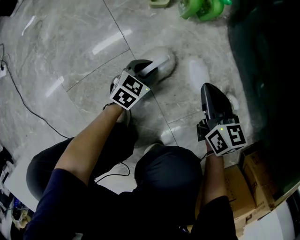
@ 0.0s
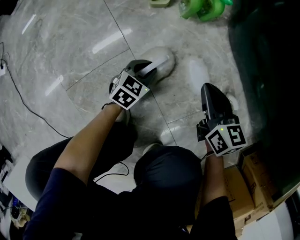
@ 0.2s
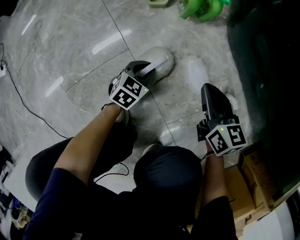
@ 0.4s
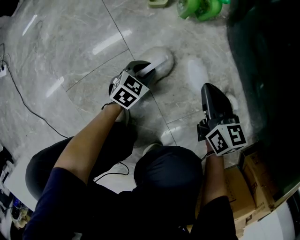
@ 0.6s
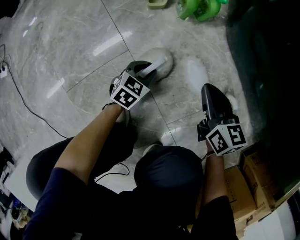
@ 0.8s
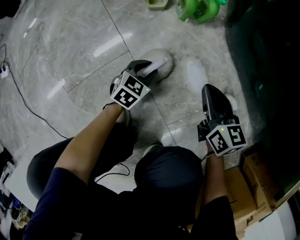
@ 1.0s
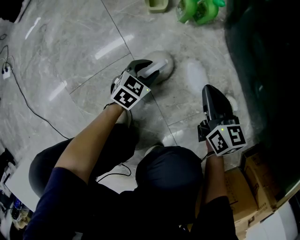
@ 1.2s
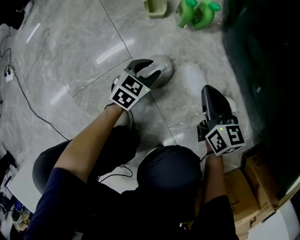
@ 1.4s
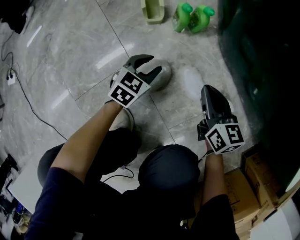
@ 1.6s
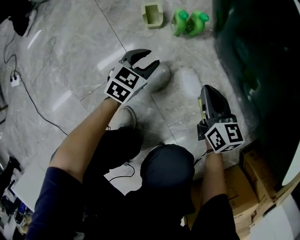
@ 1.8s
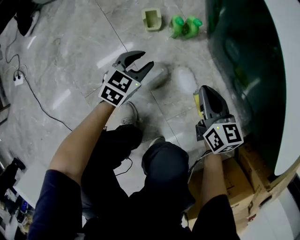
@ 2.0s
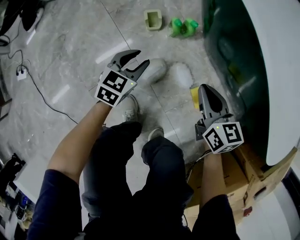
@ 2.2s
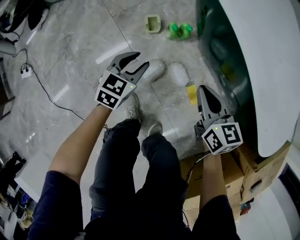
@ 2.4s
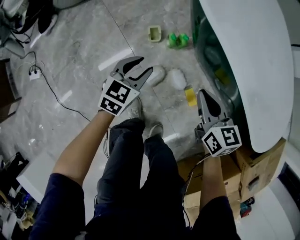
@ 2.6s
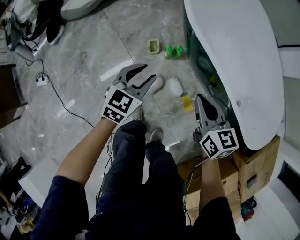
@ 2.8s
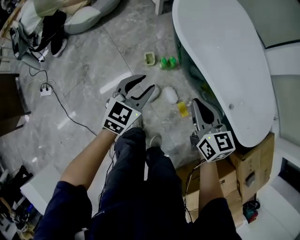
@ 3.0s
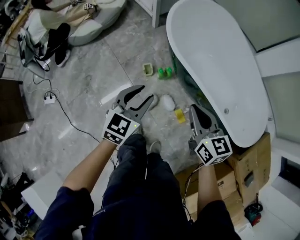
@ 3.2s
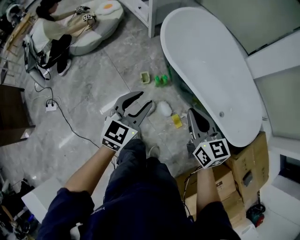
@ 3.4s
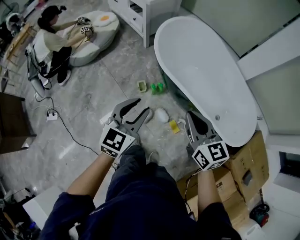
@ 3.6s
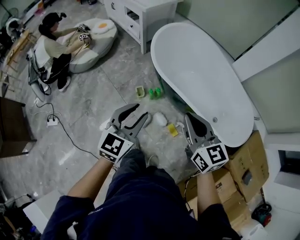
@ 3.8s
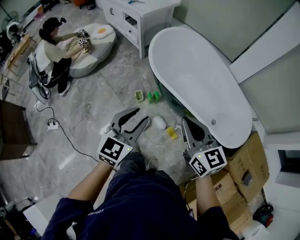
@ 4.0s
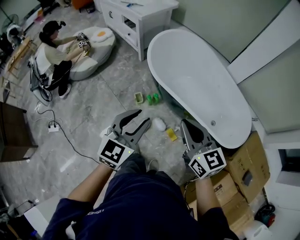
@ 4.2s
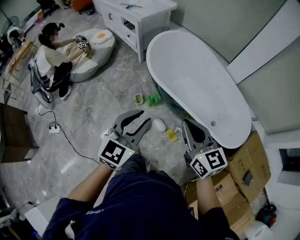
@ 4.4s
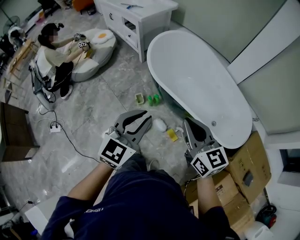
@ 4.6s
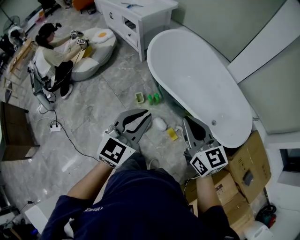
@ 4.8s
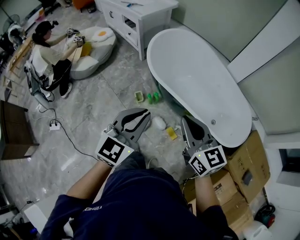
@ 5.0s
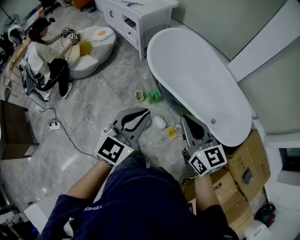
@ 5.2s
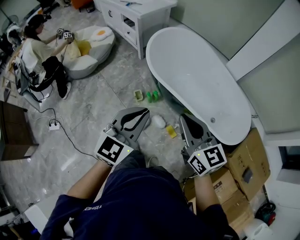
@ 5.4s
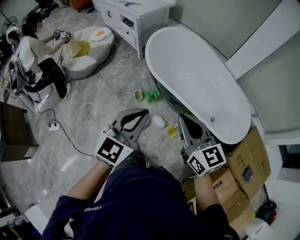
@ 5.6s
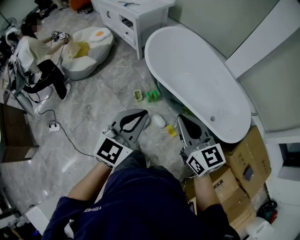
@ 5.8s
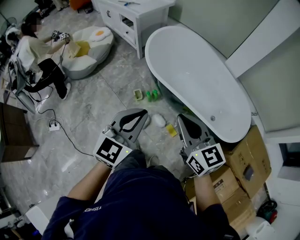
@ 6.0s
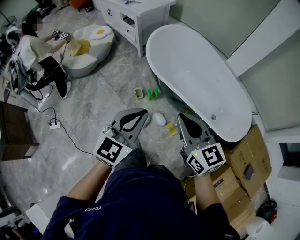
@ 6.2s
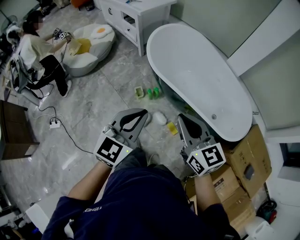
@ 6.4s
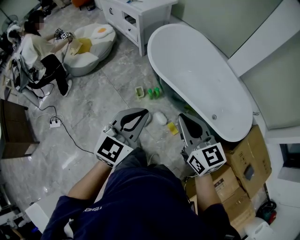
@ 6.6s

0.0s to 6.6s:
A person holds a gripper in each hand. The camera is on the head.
0.0s to 1.6s: The left gripper travels upward and forward by approximately 10 cm.
1.6s to 3.2s: The two grippers go some 70 cm upward.
3.2s to 5.0s: The two grippers go roughly 20 cm upward and backward. The left gripper closes up.
5.0s to 6.6s: The grippers make only small movements.

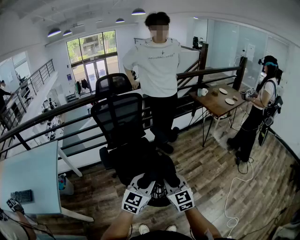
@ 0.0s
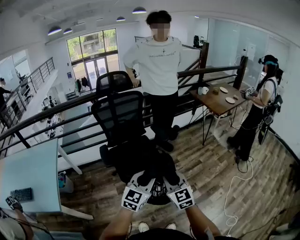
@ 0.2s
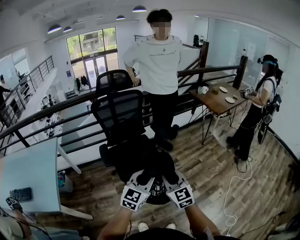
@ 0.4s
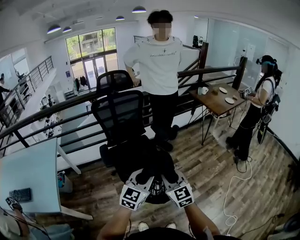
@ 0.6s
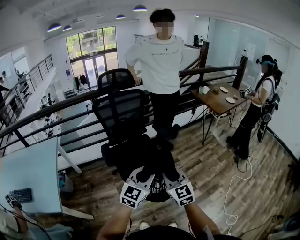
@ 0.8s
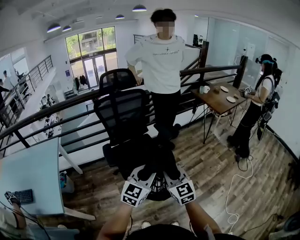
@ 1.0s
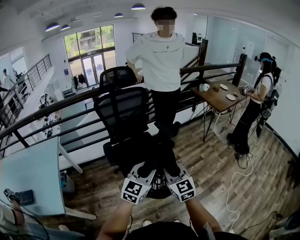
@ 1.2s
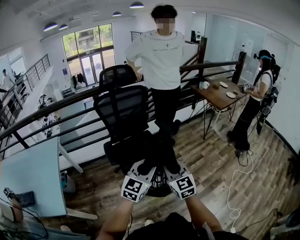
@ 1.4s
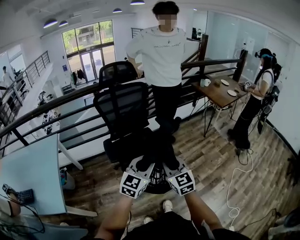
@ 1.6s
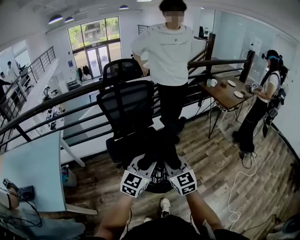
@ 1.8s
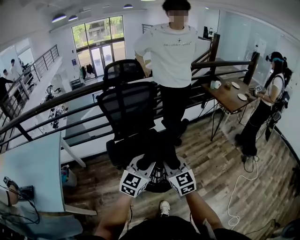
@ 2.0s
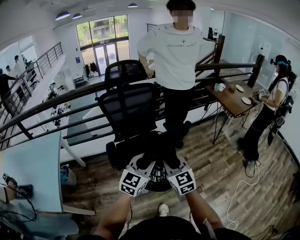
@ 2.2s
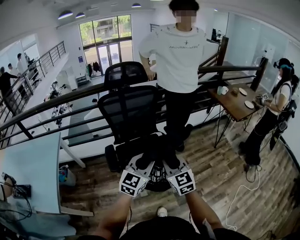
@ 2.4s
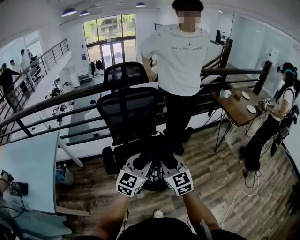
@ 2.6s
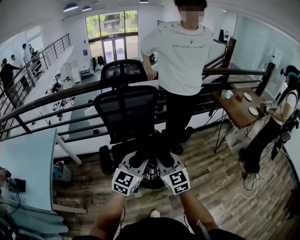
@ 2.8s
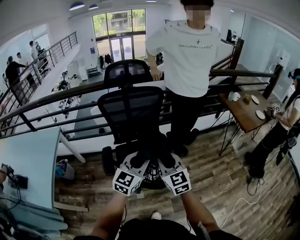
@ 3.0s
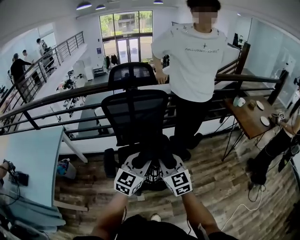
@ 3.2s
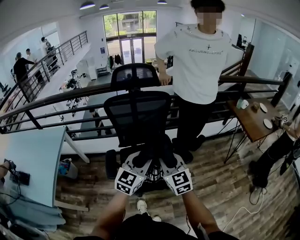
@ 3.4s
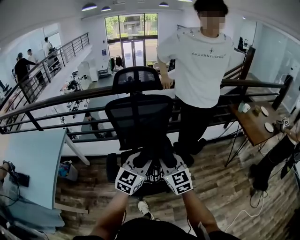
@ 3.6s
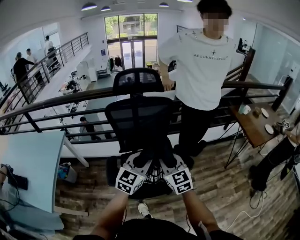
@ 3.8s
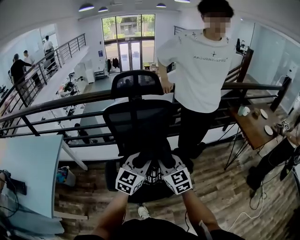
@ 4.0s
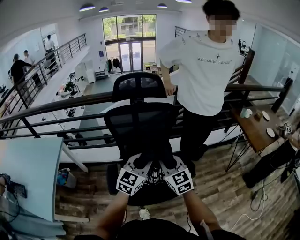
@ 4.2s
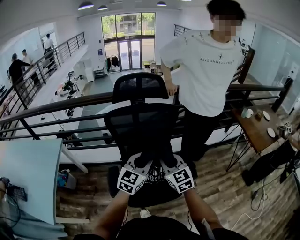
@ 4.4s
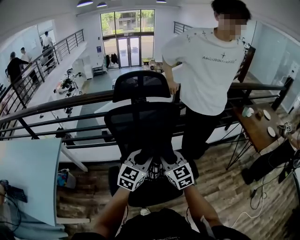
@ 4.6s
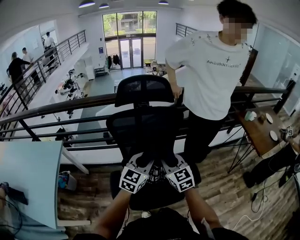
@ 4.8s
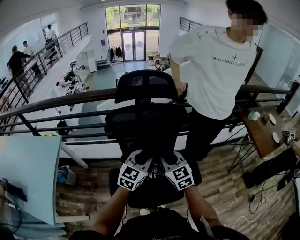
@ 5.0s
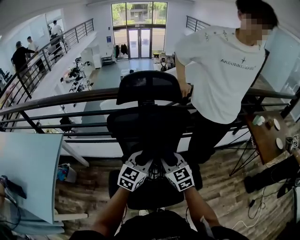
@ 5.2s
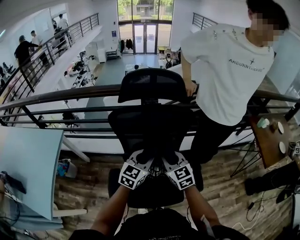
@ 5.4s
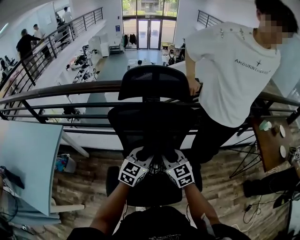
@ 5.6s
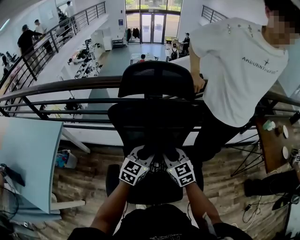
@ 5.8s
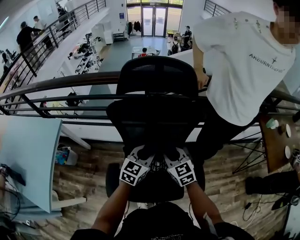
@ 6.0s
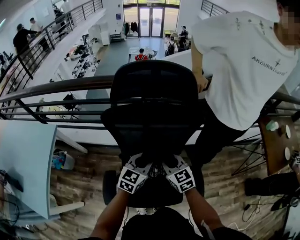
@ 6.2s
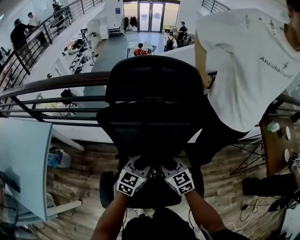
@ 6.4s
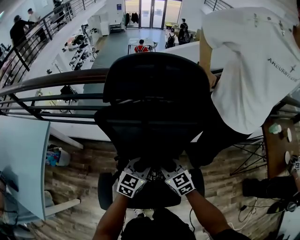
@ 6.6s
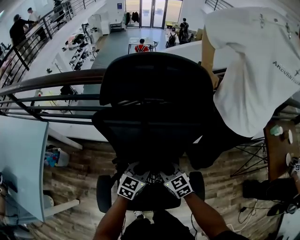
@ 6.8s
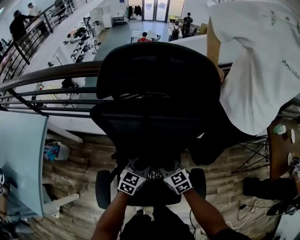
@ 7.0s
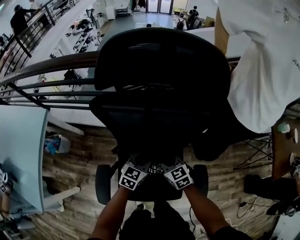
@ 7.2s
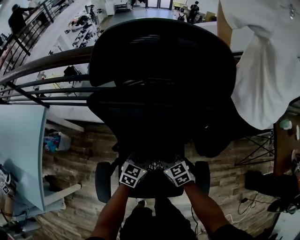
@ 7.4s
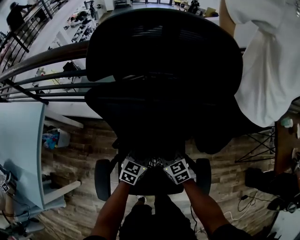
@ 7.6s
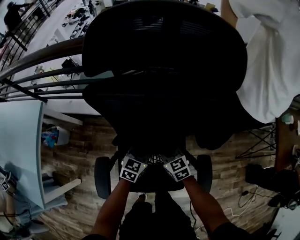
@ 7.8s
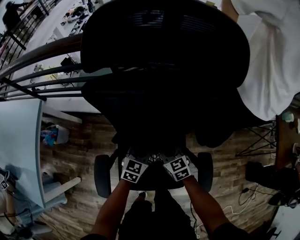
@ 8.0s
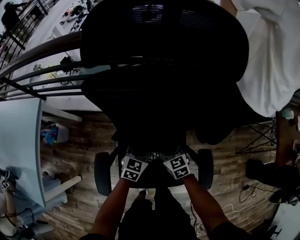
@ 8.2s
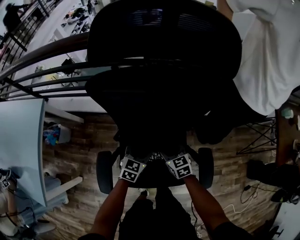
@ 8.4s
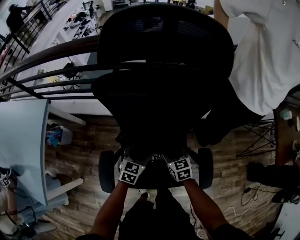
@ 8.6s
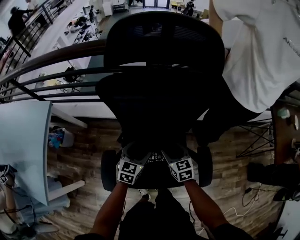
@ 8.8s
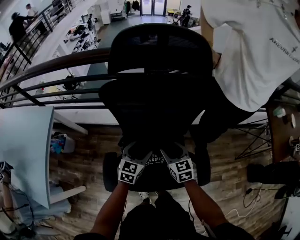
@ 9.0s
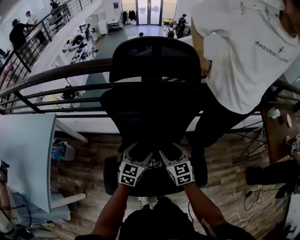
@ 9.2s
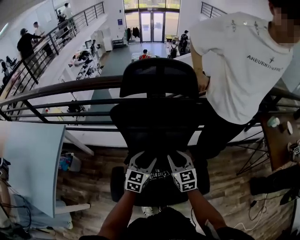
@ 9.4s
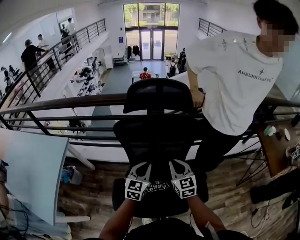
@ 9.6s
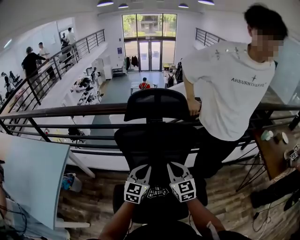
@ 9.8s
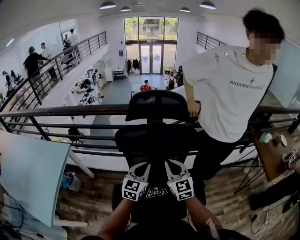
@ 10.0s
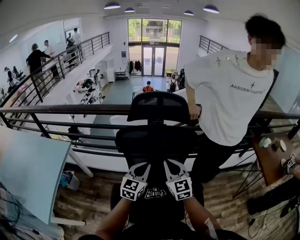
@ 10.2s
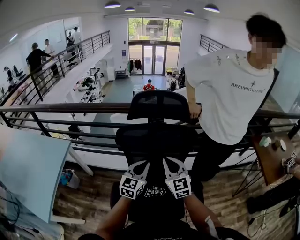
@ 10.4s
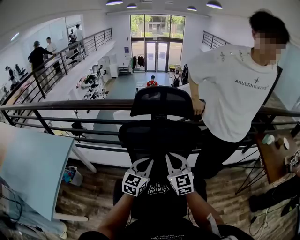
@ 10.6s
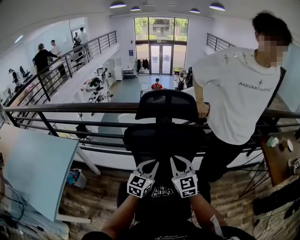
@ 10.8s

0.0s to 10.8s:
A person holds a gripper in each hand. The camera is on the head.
0.0s to 1.6s: Both grippers move to the left, about 10 cm.
1.6s to 3.0s: Both grippers travel together forward, some 25 cm.
3.0s to 4.6s: Both grippers move forward, about 20 cm.
4.6s to 6.2s: Both grippers travel together forward and downward, about 20 cm.
6.2s to 7.8s: Both grippers move downward, some 20 cm.
7.8s to 9.2s: The right gripper heads upward, covering about 15 cm, and opens up; the left gripper travels upward and backward by roughly 15 cm, and opens its fingers.
9.2s to 10.8s: The grippers both shift upward by roughly 20 cm. The right gripper swivels about 20 degrees, and closes up. The left gripper closes.

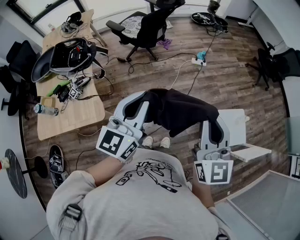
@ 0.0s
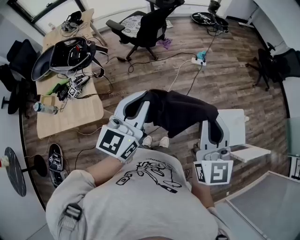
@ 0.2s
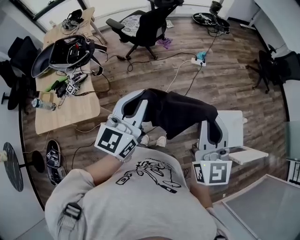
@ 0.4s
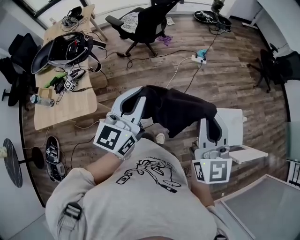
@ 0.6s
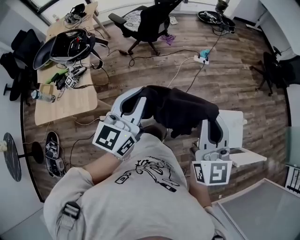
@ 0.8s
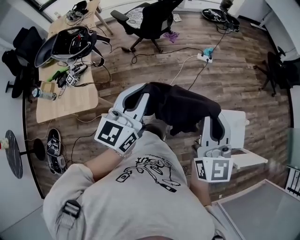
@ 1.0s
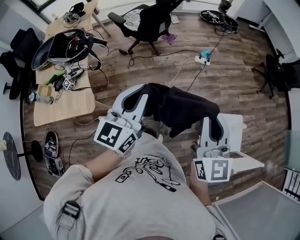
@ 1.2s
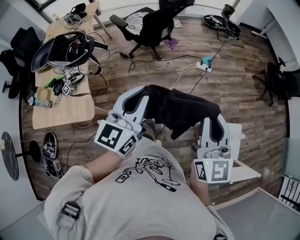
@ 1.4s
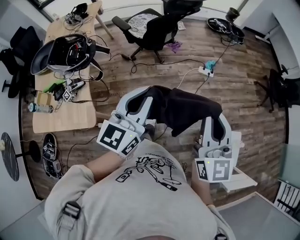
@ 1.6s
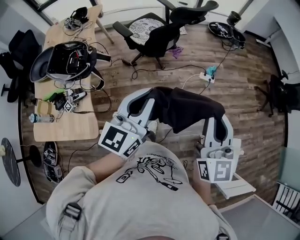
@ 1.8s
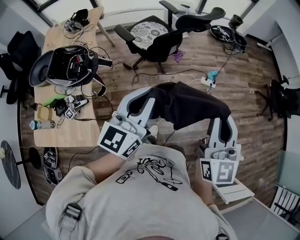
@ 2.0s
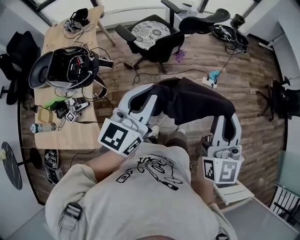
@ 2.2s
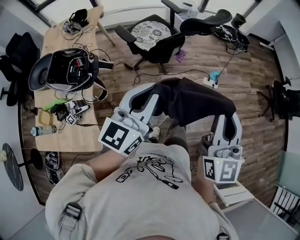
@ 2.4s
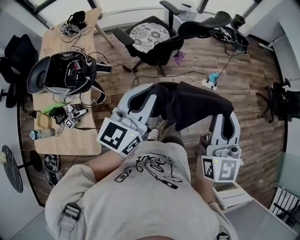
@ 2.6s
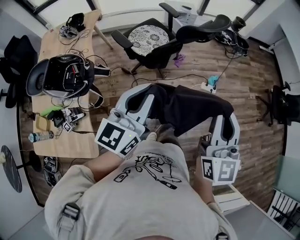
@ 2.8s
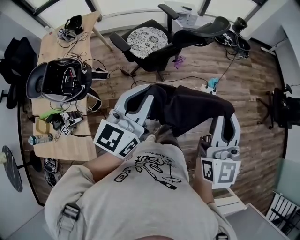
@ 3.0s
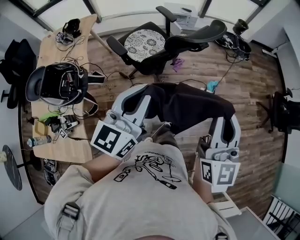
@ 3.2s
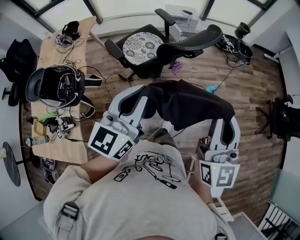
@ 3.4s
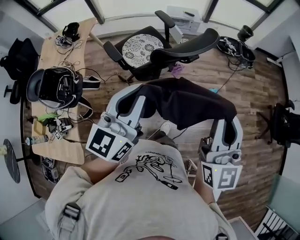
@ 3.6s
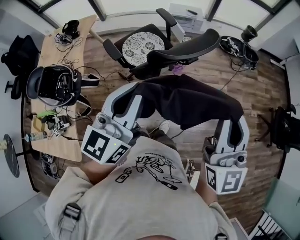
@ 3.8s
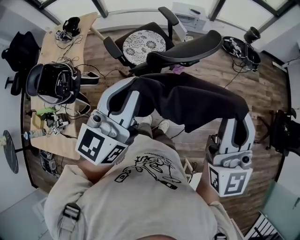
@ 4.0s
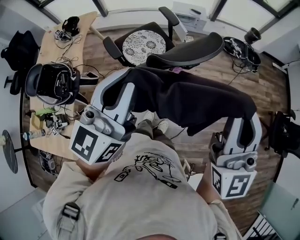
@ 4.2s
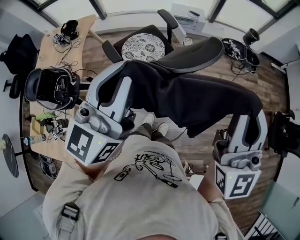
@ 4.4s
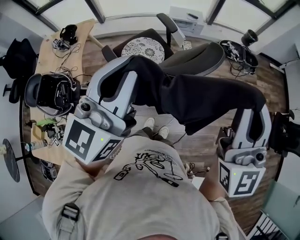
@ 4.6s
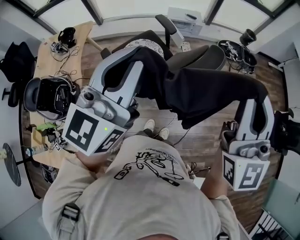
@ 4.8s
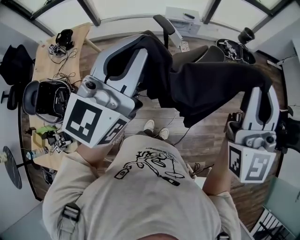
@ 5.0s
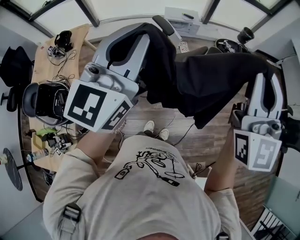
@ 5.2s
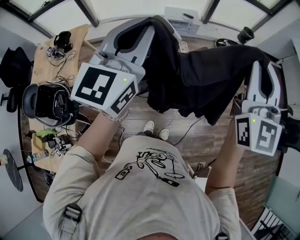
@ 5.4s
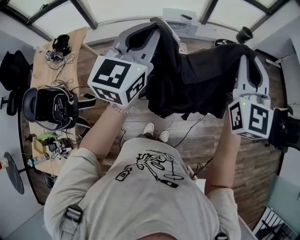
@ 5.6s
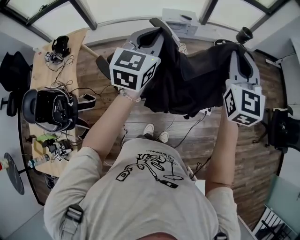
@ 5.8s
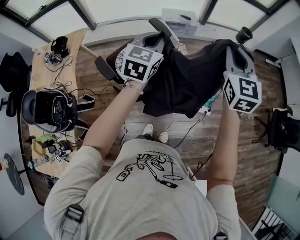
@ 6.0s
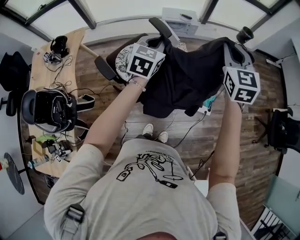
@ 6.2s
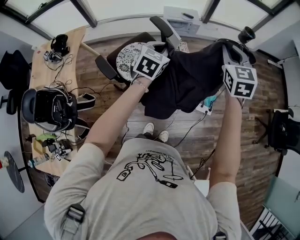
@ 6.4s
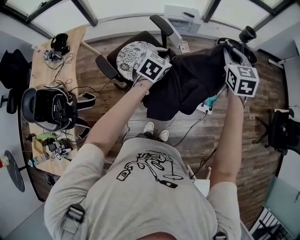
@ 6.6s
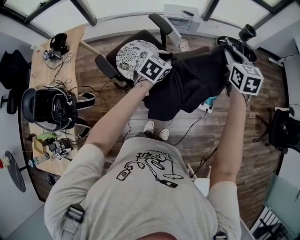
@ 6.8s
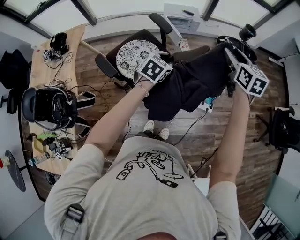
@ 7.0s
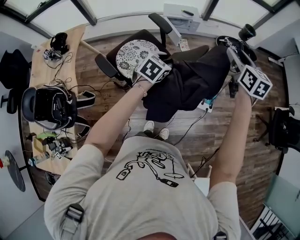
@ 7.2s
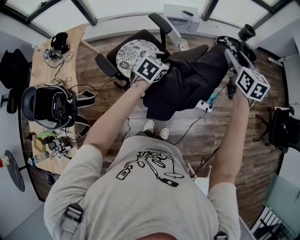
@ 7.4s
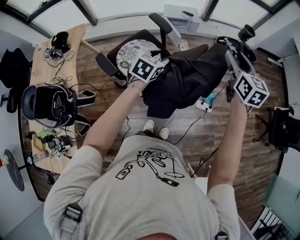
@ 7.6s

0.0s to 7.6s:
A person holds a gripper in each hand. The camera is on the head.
0.0s to 1.6s: The grippers both shift forward by some 20 cm.
1.6s to 3.0s: Both grippers move forward, about 25 cm.
3.0s to 4.6s: The grippers both shift forward and upward by about 25 cm.
4.6s to 6.0s: Both grippers travel together forward and downward, approximately 30 cm. The left gripper swivels about 30 degrees. The right gripper rotates approximately 20 degrees.
6.0s to 7.6s: The left gripper goes roughly 15 cm downward, turns by some 20 degrees, and opens, while the right gripper moves downward and to the right, approximately 10 cm, swivels approximately 20 degrees, and opens its fingers.
